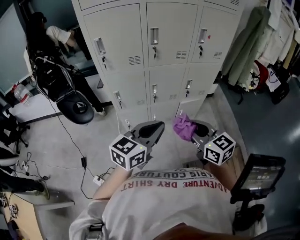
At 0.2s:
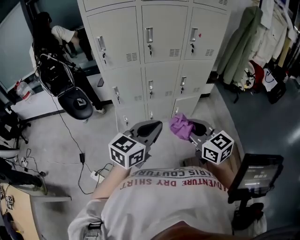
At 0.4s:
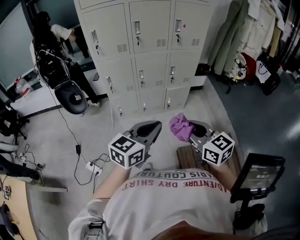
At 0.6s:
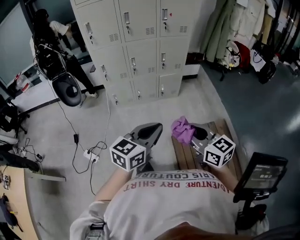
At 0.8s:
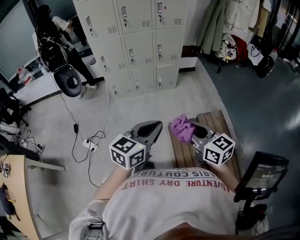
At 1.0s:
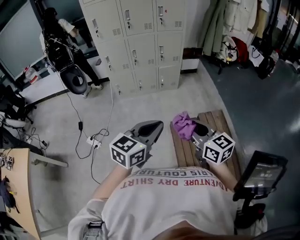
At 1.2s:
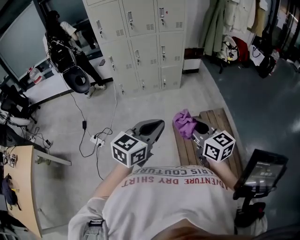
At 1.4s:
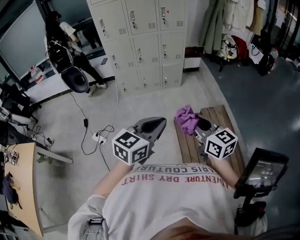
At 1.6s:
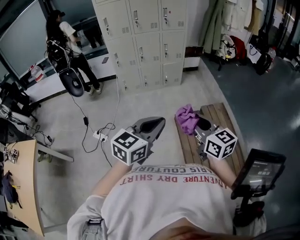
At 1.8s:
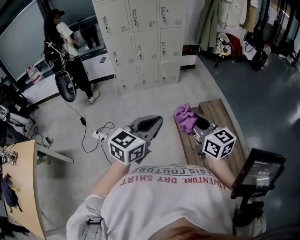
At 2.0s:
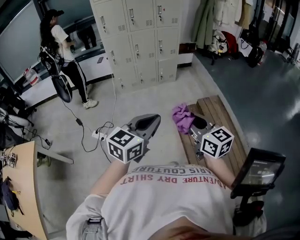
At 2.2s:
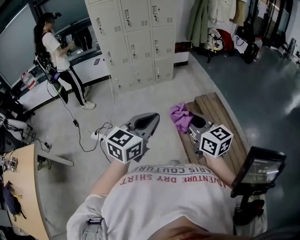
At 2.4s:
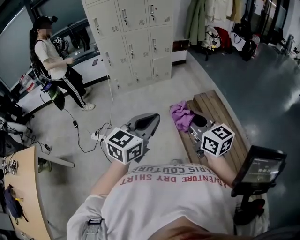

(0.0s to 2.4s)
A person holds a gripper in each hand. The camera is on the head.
0.0s - 1.2s: The two grippers travel together, backward and to the right, approximately 60 cm.
1.2s - 2.4s: Both grippers move backward and to the left, about 20 cm.

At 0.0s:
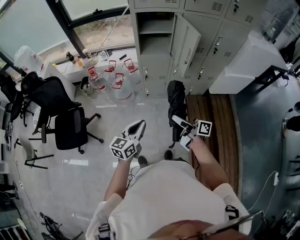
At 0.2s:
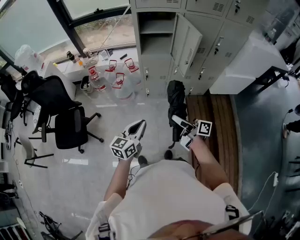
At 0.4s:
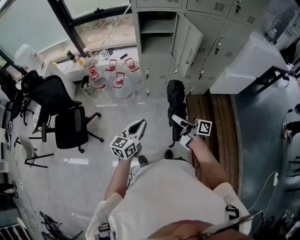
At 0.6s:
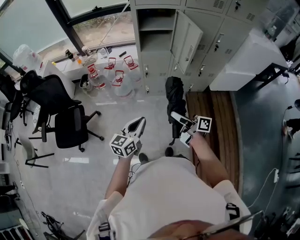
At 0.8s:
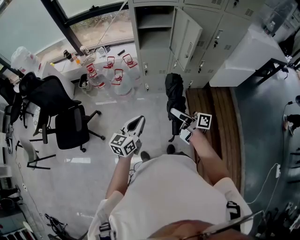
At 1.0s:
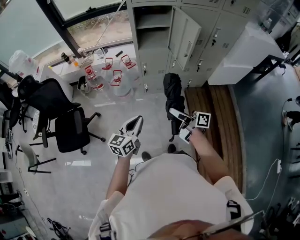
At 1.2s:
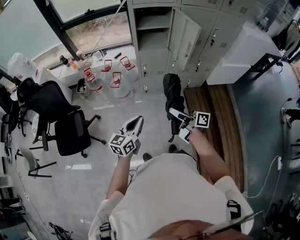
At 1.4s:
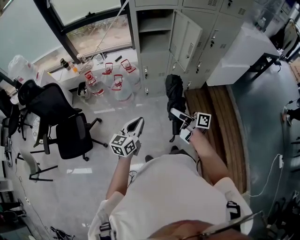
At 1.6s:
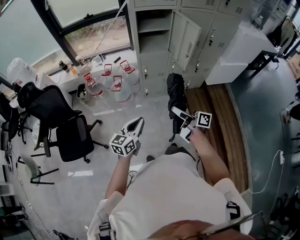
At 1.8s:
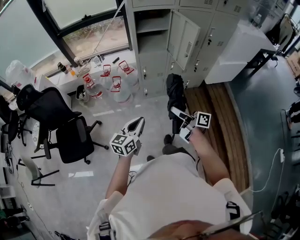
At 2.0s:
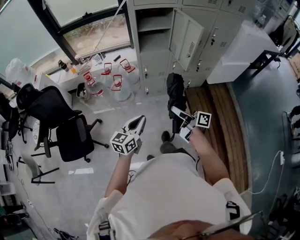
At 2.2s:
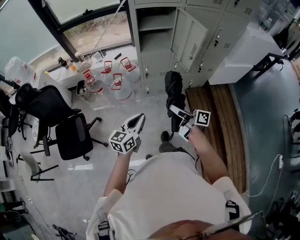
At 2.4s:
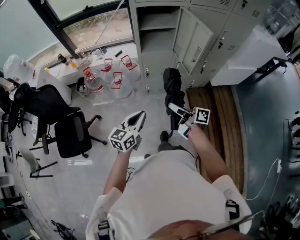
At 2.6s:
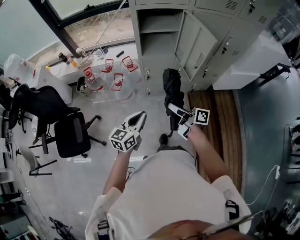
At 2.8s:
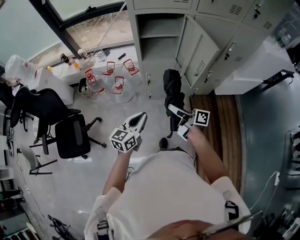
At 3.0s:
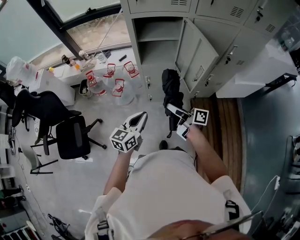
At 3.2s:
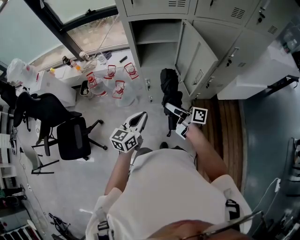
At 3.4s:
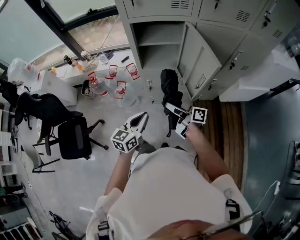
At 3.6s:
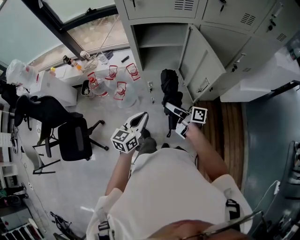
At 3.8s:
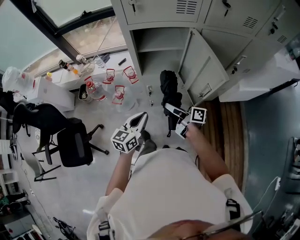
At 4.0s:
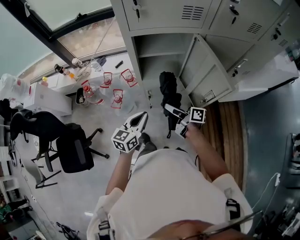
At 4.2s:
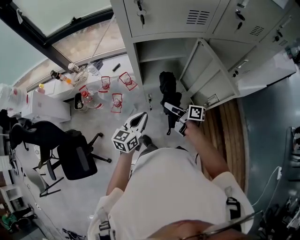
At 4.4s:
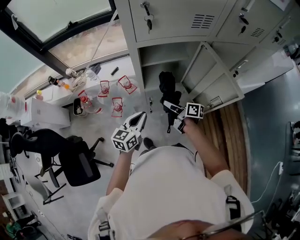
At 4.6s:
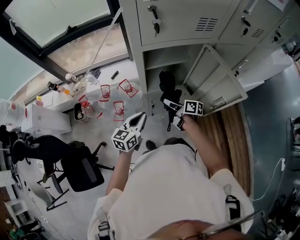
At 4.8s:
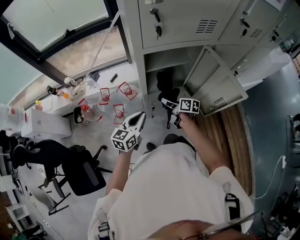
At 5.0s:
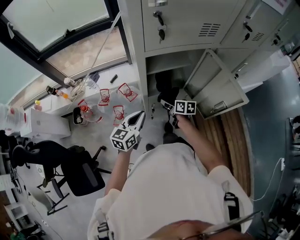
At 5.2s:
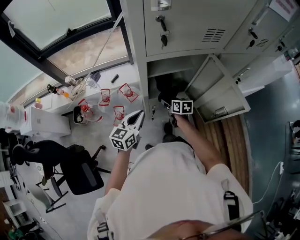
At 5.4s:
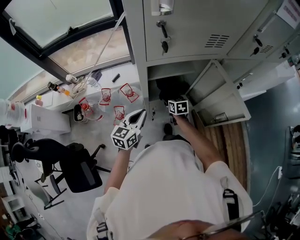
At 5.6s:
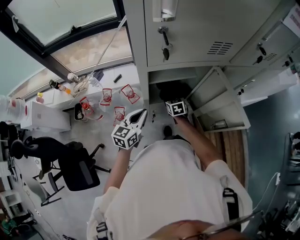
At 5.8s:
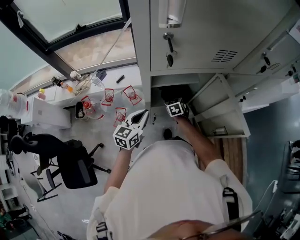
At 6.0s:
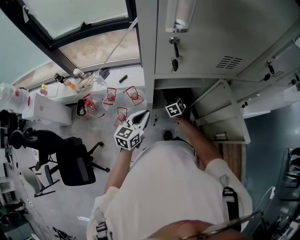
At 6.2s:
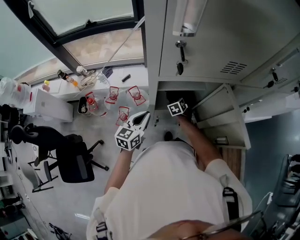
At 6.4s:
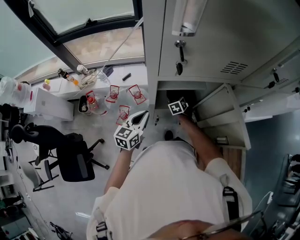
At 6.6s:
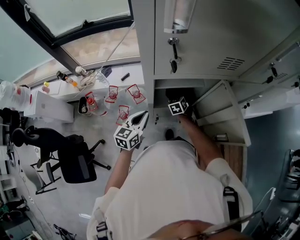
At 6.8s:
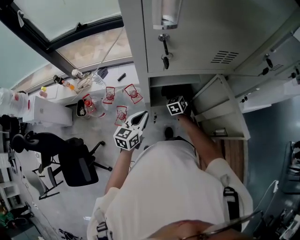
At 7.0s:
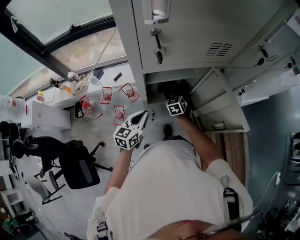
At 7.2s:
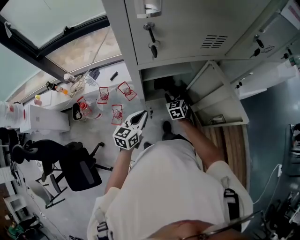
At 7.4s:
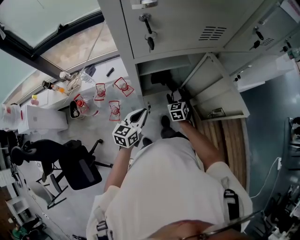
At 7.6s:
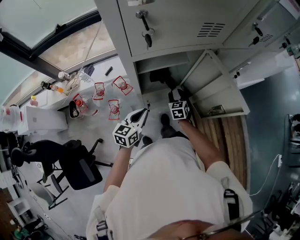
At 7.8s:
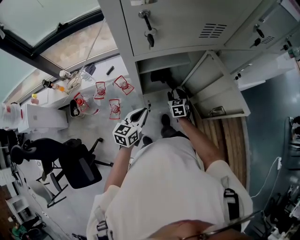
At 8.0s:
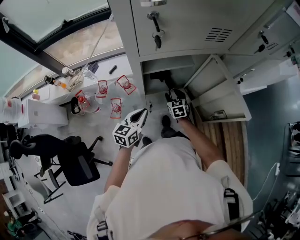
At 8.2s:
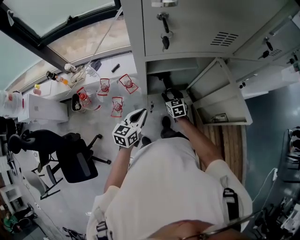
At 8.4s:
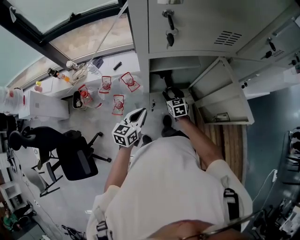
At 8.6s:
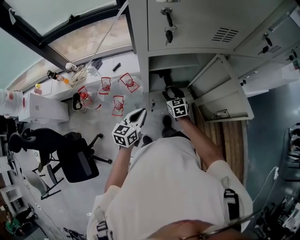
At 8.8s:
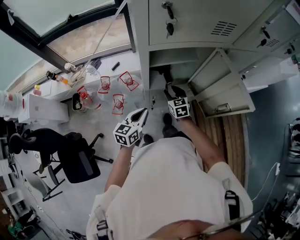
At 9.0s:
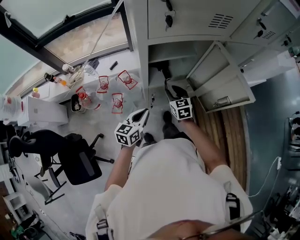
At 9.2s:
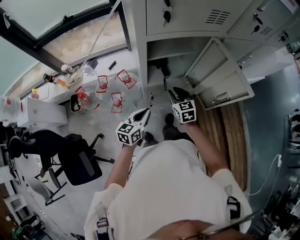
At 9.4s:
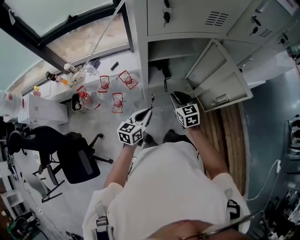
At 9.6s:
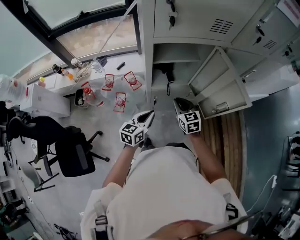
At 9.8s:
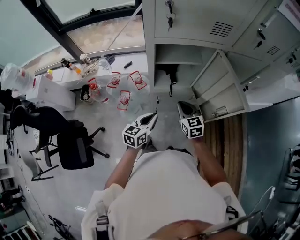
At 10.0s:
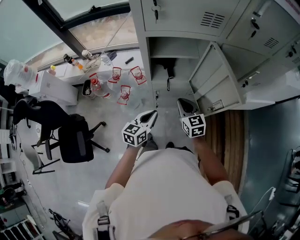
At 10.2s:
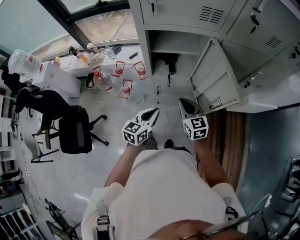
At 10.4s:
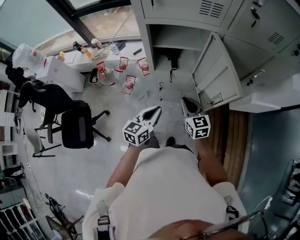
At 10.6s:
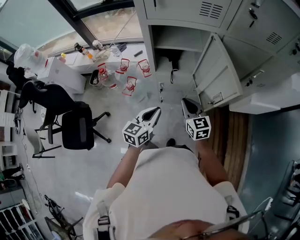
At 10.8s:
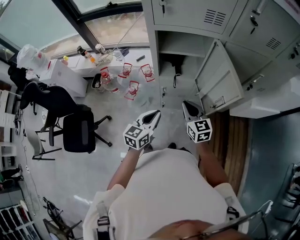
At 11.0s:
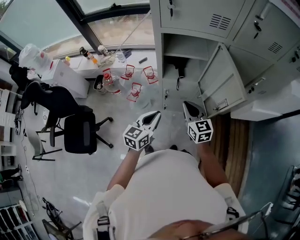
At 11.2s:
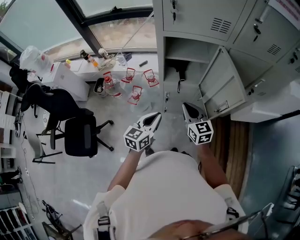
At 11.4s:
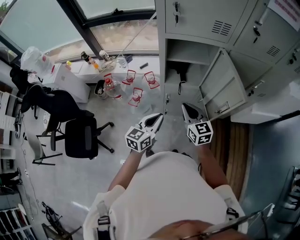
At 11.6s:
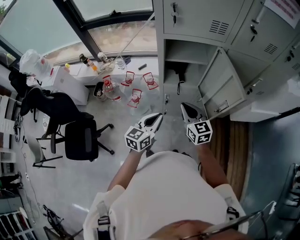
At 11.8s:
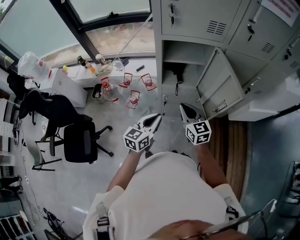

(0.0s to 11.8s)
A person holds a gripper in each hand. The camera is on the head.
0.0s - 1.4s: Both grippers move to the left, about 10 cm.
1.4s - 3.0s: The left gripper is displaced forward and to the right by some 25 cm. Meanwhile the right gripper shifts some 25 cm forward.
3.0s - 4.4s: The left gripper shifts approximately 20 cm forward; the right gripper is displaced forward and downward by roughly 25 cm, and turns by about 20 degrees.
4.4s - 6.0s: The right gripper goes approximately 25 cm forward and downward, and twists about 70 degrees counterclockwise, seen from behind. The left gripper shifts about 10 cm forward.
6.0s - 7.4s: The right gripper travels to the right and backward by about 10 cm, while the left gripper ends up about 5 cm from where it was.
7.4s - 8.8s: The left gripper moves some 5 cm; the right gripper heads to the left, covering approximately 5 cm.
8.8s - 10.4s: The left gripper goes approximately 15 cm to the right and backward, while the right gripper heads backward, upward and to the right, covering some 20 cm, and closes.
10.4s - 11.8s: The right gripper heads to the left and upward, covering some 10 cm; the left gripper goes some 5 cm to the left.

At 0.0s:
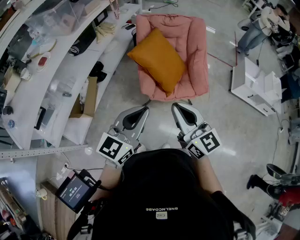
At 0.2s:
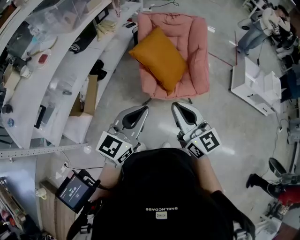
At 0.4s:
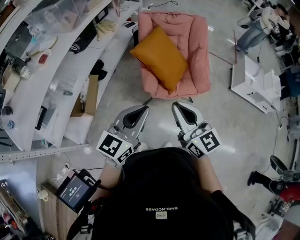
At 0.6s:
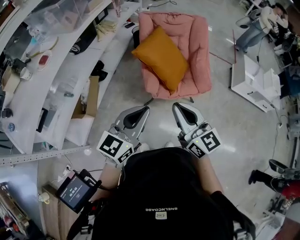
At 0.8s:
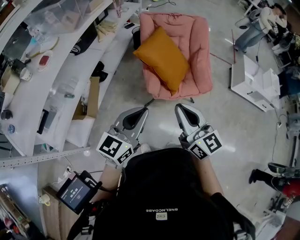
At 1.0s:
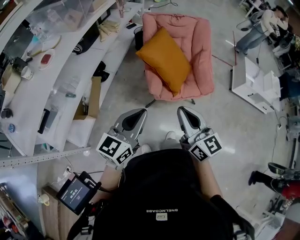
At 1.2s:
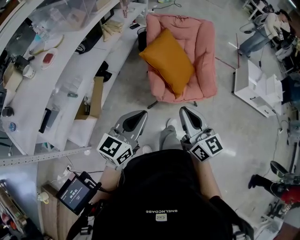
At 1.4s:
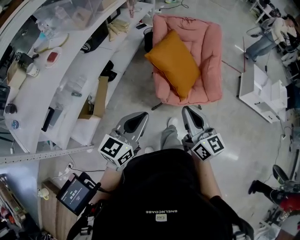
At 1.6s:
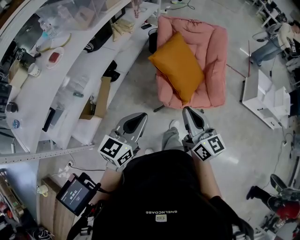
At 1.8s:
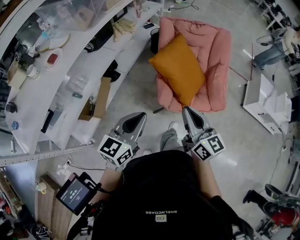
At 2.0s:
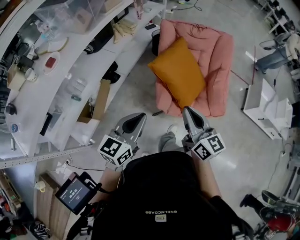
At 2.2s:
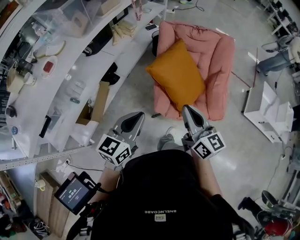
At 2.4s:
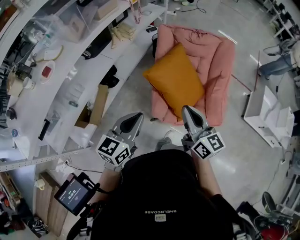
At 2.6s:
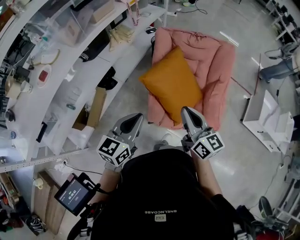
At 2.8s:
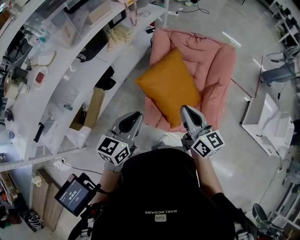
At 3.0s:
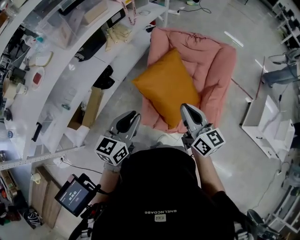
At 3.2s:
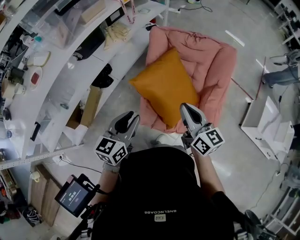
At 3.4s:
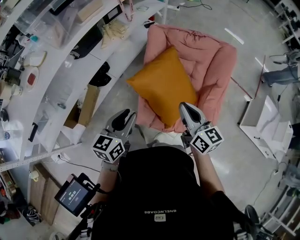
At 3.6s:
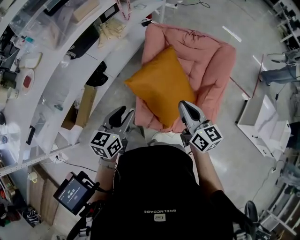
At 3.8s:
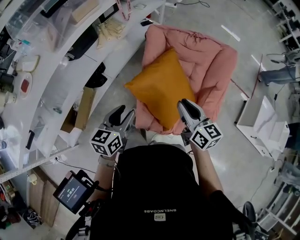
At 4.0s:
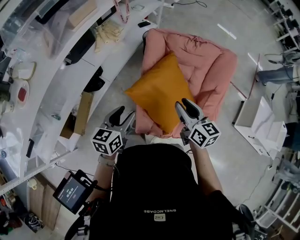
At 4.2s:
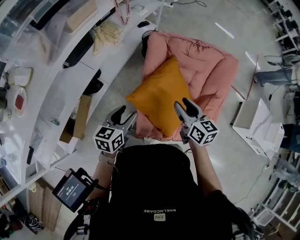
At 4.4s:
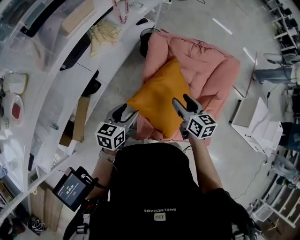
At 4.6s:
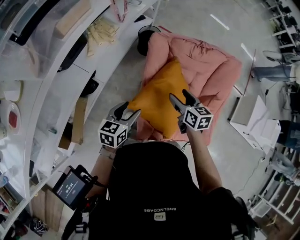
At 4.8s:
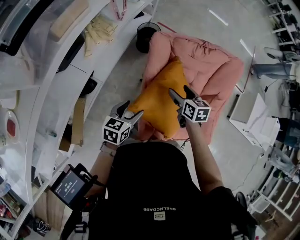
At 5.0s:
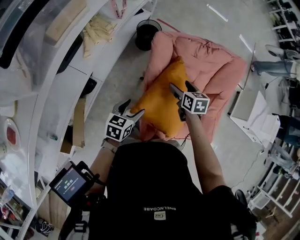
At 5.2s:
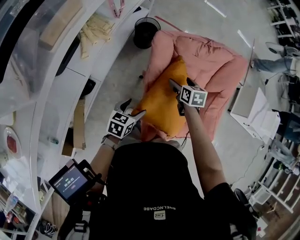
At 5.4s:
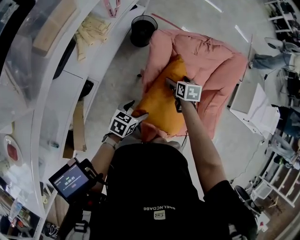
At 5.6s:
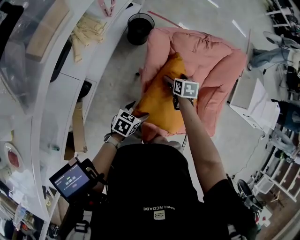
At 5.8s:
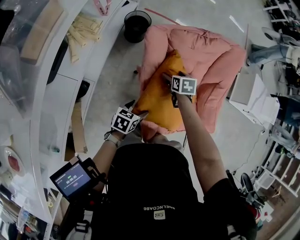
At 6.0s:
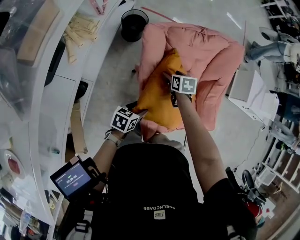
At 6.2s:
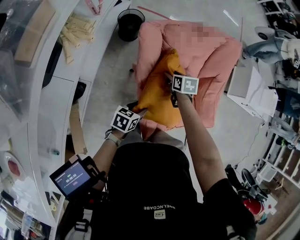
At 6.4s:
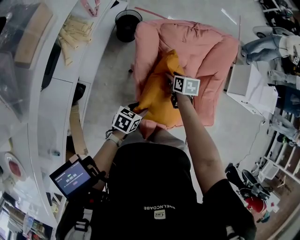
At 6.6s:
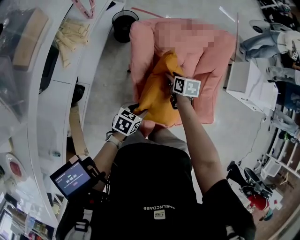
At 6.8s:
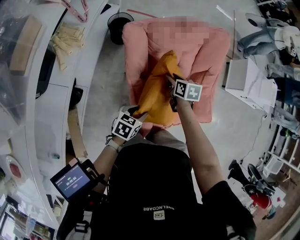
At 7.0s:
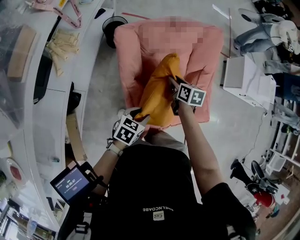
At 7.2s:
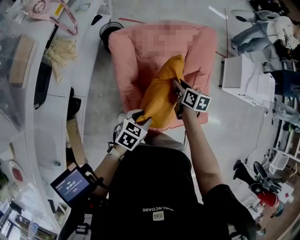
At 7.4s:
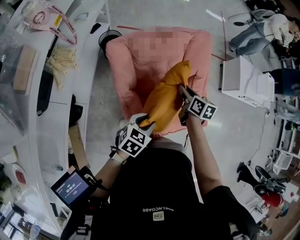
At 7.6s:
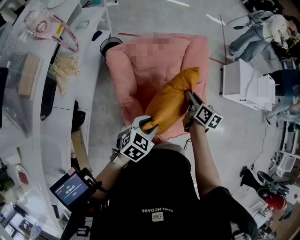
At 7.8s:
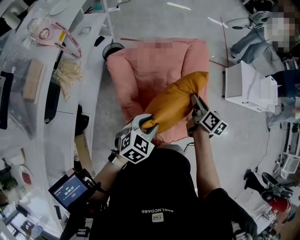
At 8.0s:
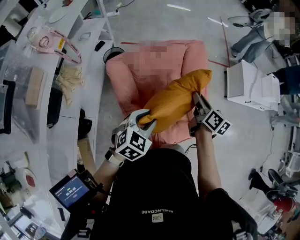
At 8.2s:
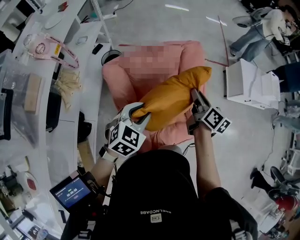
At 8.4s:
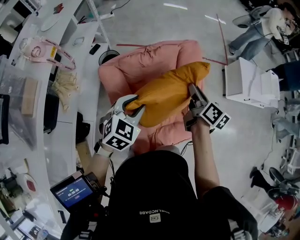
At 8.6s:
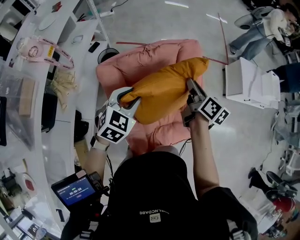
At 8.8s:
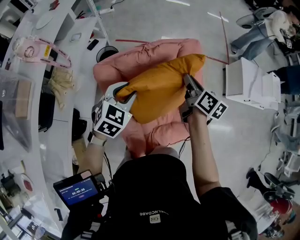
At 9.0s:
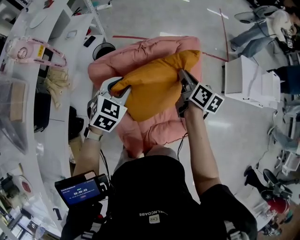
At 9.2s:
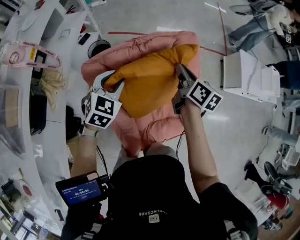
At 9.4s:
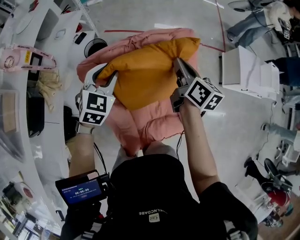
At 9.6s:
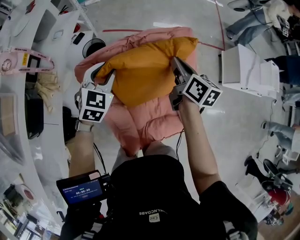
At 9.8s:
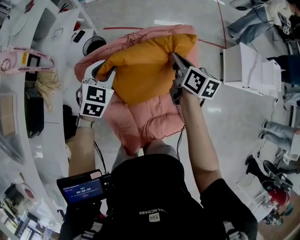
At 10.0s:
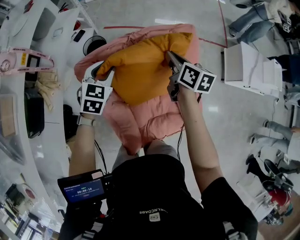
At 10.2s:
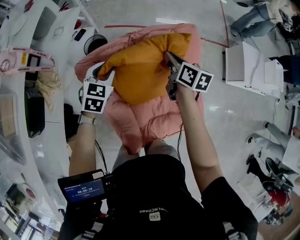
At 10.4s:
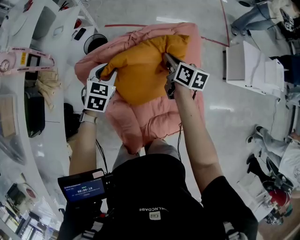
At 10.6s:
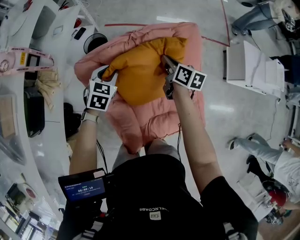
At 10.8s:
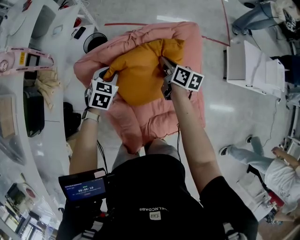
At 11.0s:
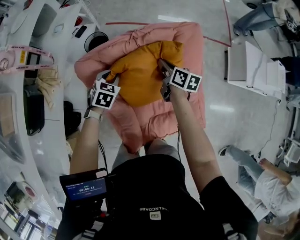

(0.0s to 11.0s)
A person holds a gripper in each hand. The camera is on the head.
0.0s - 1.6s: The right gripper travels forward and to the left by roughly 10 cm. Meanwhile the left gripper travels to the left, downward and forward by about 15 cm.
1.6s - 3.2s: The two grippers go some 30 cm forward and to the right.
3.2s - 4.8s: The grippers both shift forward and downward by about 30 cm. The right gripper angles its fingers downward, by some 30 degrees, and opens; the left gripper rotates roughly 30 degrees, and opens.
4.8s - 6.2s: The left gripper is displaced downward and to the right by about 10 cm, and turns by about 30 degrees; the right gripper moves downward, roughly 10 cm, and changes its angle by approximately 20 degrees.
6.2s - 7.8s: The right gripper is displaced to the right and upward by approximately 30 cm, and points its fingers approximately 30 degrees further upward. The left gripper heads upward and to the right, covering about 25 cm, and rolls clockwise, seen from behind, by roughly 40 degrees.
7.8s - 9.4s: The left gripper shifts about 25 cm forward, and turns by about 20 degrees. The right gripper heads forward, covering about 15 cm.
9.4s - 11.0s: Both grippers move downward, about 15 cm. The left gripper turns by roughly 20 degrees.
